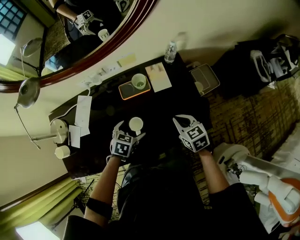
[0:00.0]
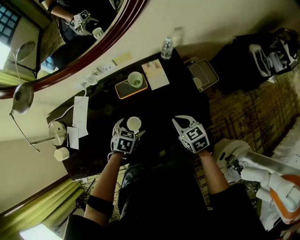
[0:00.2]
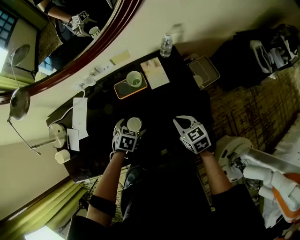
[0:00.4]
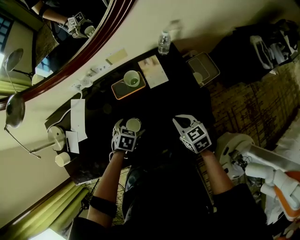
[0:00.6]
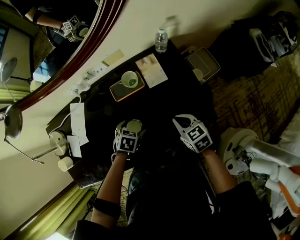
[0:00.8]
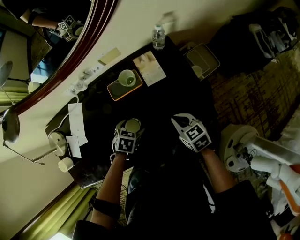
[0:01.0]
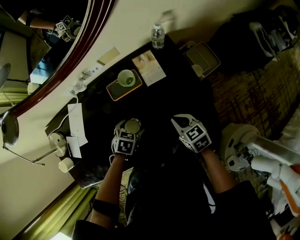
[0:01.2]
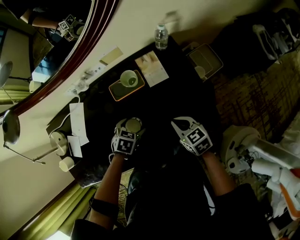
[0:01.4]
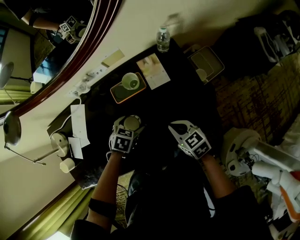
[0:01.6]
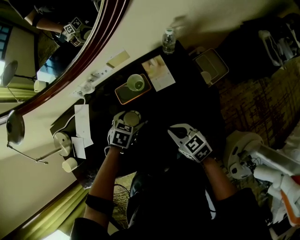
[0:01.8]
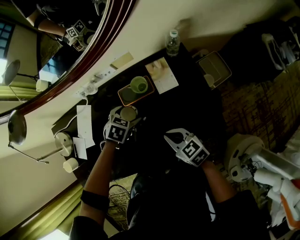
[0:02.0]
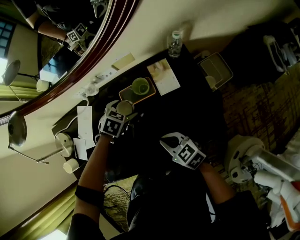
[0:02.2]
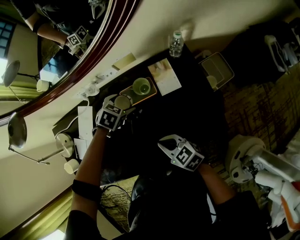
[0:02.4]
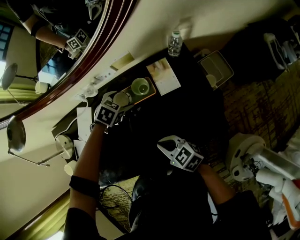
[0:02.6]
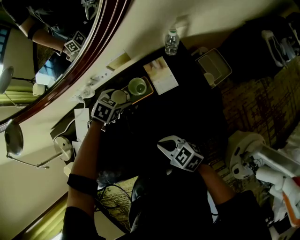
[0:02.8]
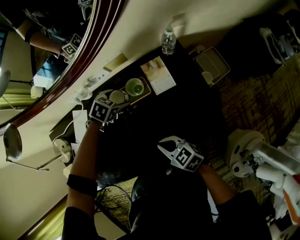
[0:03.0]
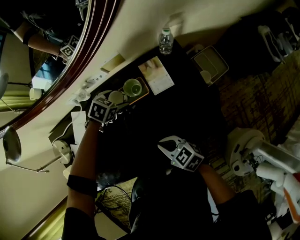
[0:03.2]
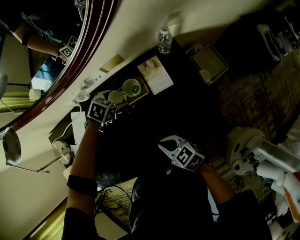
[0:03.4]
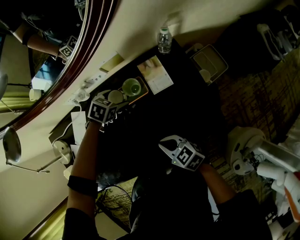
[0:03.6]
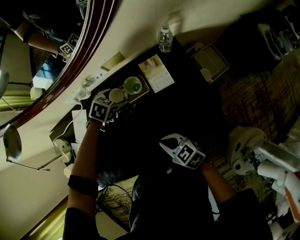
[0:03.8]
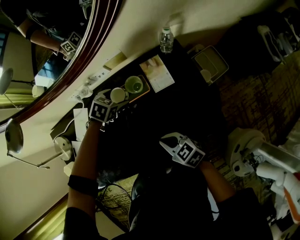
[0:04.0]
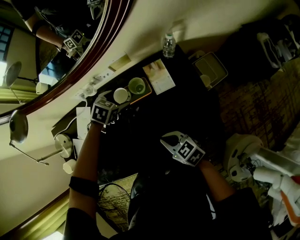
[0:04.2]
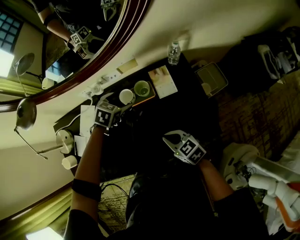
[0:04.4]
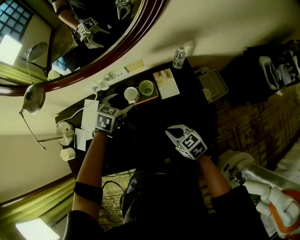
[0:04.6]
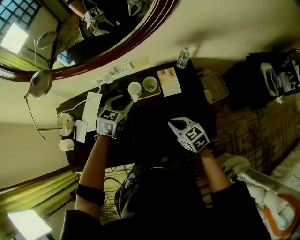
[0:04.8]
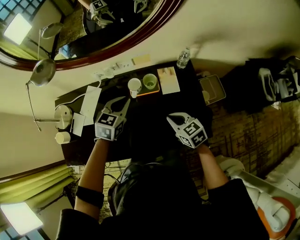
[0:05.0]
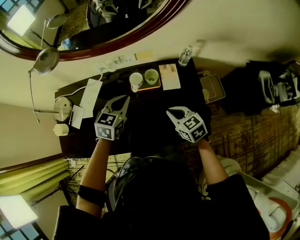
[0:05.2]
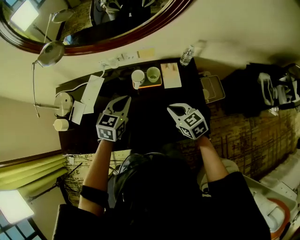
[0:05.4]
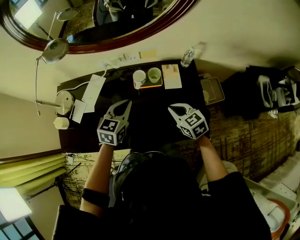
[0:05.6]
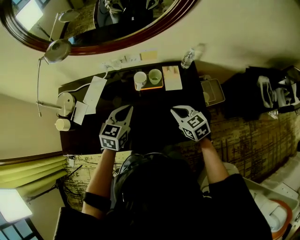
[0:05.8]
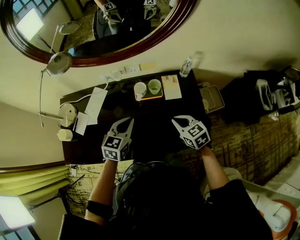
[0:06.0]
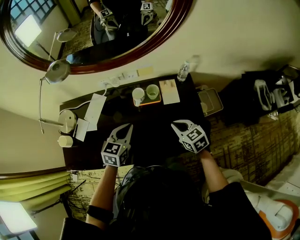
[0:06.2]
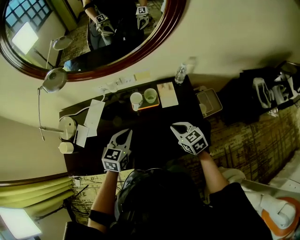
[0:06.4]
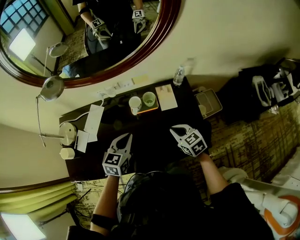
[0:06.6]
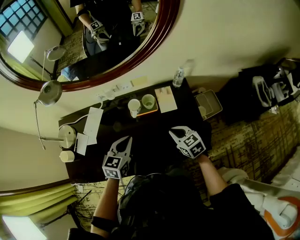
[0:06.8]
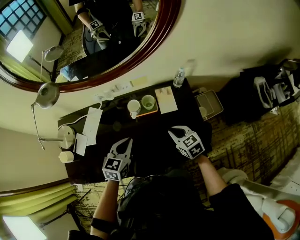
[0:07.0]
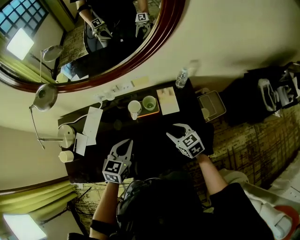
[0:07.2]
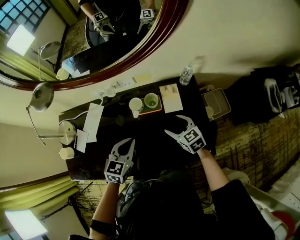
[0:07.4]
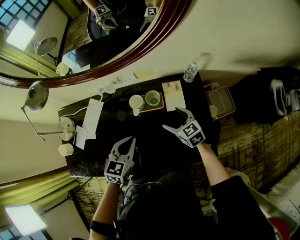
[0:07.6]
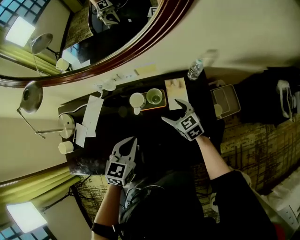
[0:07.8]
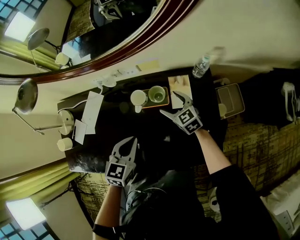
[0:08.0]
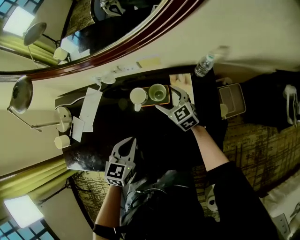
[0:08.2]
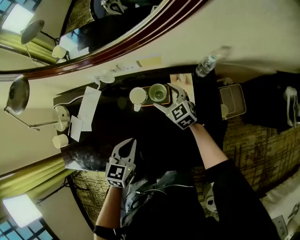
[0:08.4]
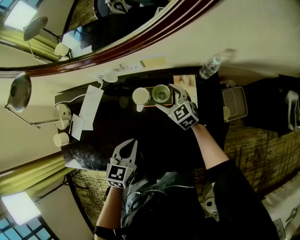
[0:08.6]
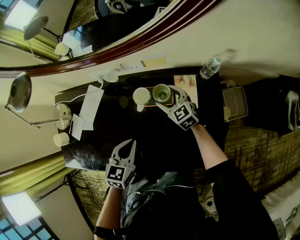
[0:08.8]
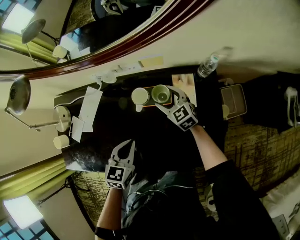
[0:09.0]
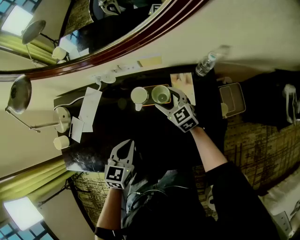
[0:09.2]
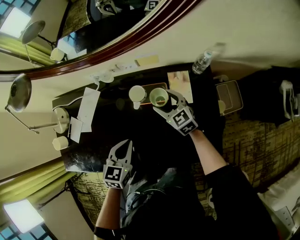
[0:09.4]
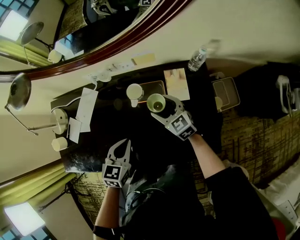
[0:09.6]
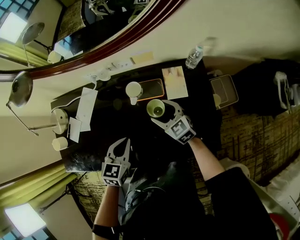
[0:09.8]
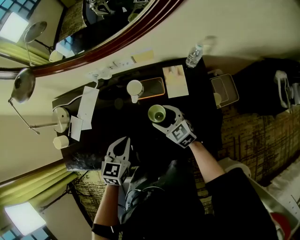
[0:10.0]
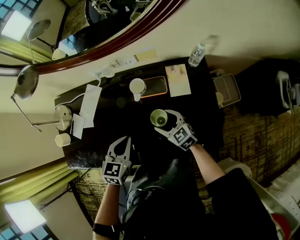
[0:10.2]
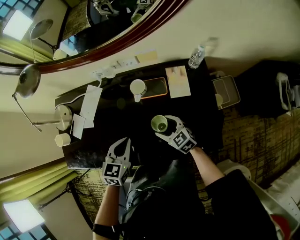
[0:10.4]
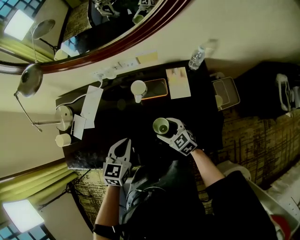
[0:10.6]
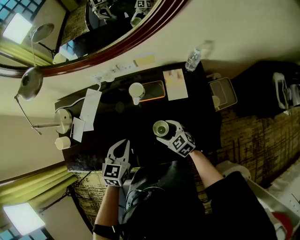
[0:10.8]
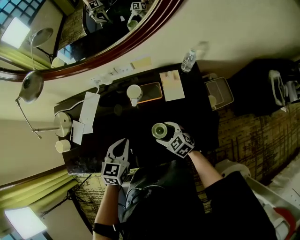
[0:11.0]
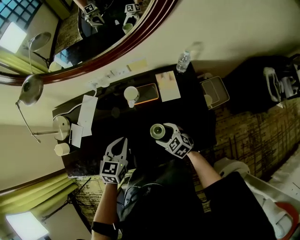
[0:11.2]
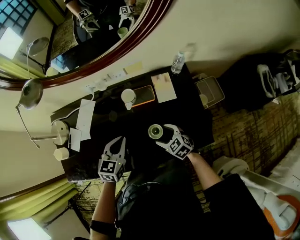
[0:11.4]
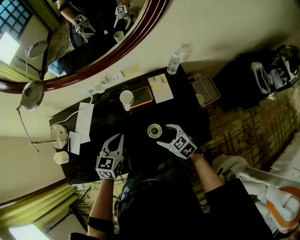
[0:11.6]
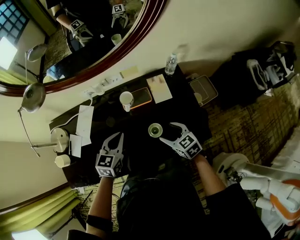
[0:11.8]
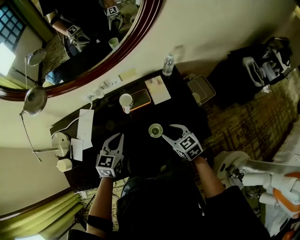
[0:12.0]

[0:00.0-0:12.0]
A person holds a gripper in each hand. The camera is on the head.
0:00.0 to 0:01.6: The right gripper goes some 5 cm downward; the left gripper travels forward by some 5 cm.
0:01.6 to 0:03.0: The right gripper moves some 10 cm; the left gripper ends up some 15 cm from where it was.
0:03.0 to 0:04.4: The right gripper moves about 5 cm, while the left gripper is displaced upward by about 10 cm.
0:04.4 to 0:06.0: The left gripper goes some 20 cm backward and upward, rotates some 40 degrees, and closes up, while the right gripper heads upward, covering about 5 cm.
0:06.0 to 0:07.6: The left gripper ends up some 5 cm from where it was; the right gripper shifts approximately 15 cm forward and downward, and opens.
0:07.6 to 0:09.0: The right gripper moves forward and to the left, roughly 10 cm. The left gripper is displaced downward by approximately 5 cm.
0:09.0 to 0:10.4: The right gripper is displaced backward by about 20 cm, while the left gripper changes place by about 5 cm.
0:10.4 to 0:12.0: The right gripper heads upward, to the right and backward, covering approximately 10 cm, and changes its angle by roughly 30 degrees. The left gripper changes place by approximately 5 cm.

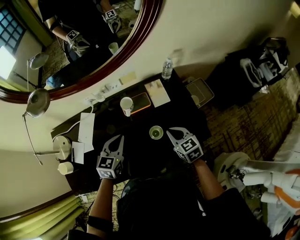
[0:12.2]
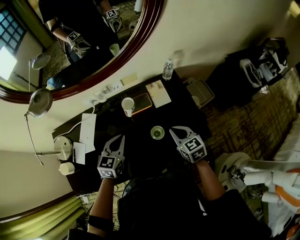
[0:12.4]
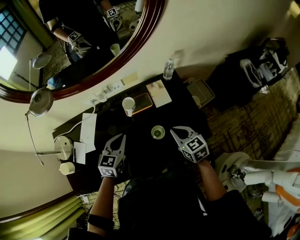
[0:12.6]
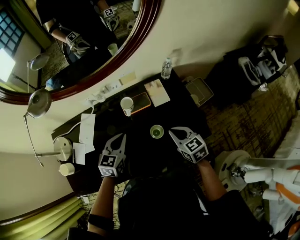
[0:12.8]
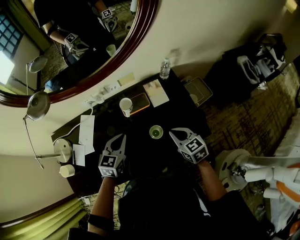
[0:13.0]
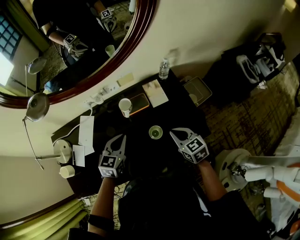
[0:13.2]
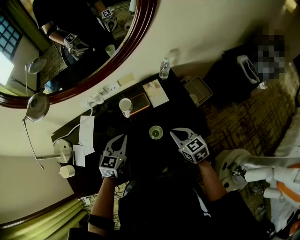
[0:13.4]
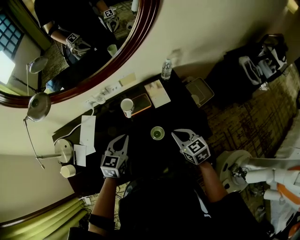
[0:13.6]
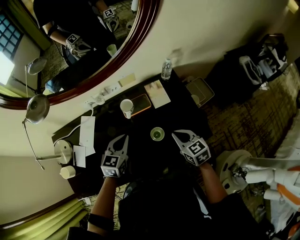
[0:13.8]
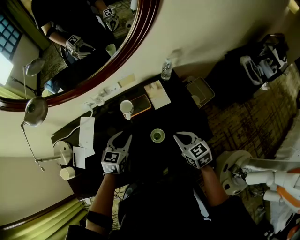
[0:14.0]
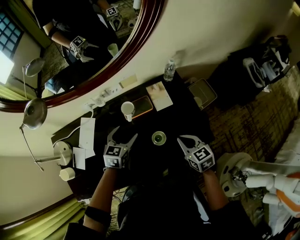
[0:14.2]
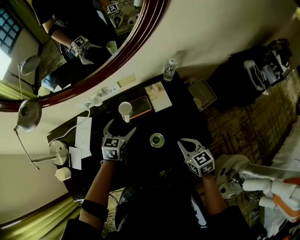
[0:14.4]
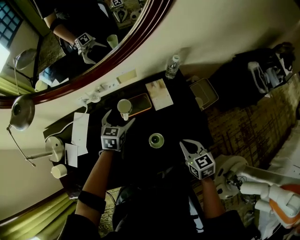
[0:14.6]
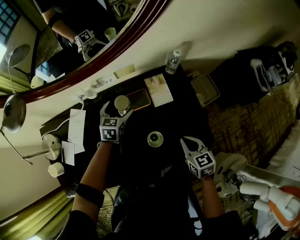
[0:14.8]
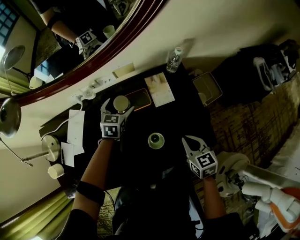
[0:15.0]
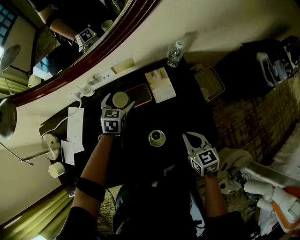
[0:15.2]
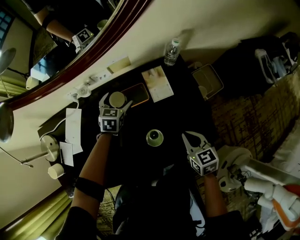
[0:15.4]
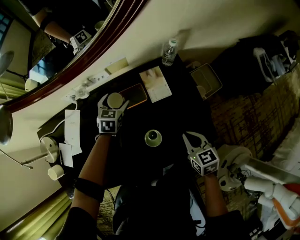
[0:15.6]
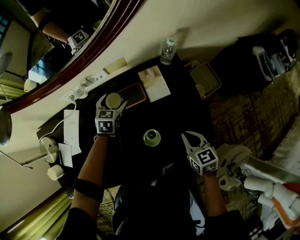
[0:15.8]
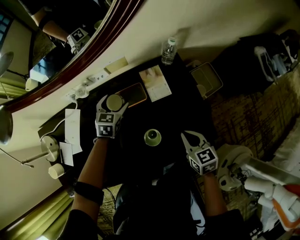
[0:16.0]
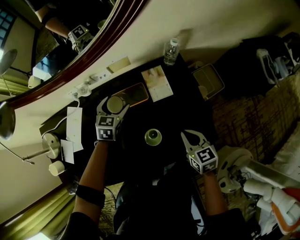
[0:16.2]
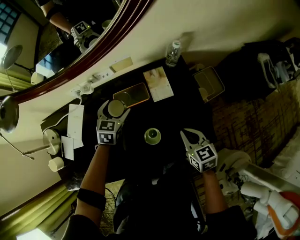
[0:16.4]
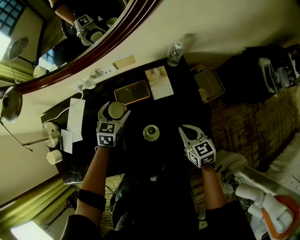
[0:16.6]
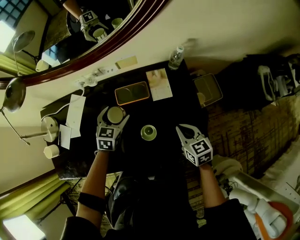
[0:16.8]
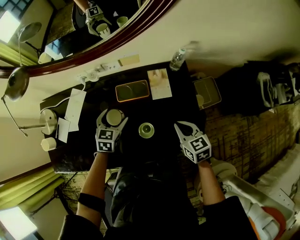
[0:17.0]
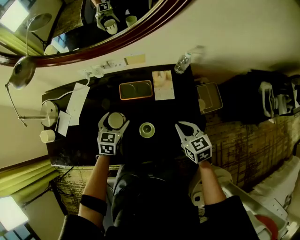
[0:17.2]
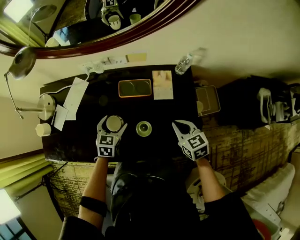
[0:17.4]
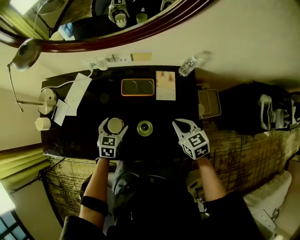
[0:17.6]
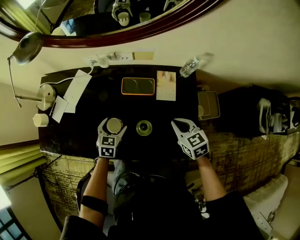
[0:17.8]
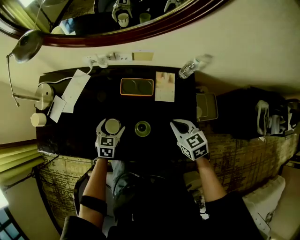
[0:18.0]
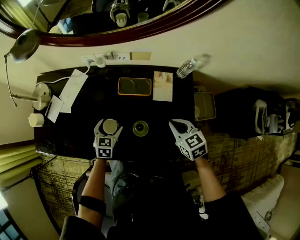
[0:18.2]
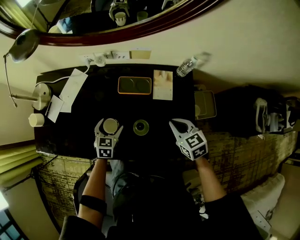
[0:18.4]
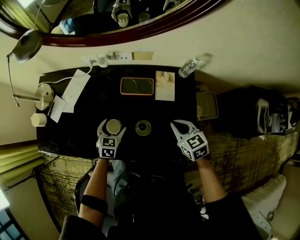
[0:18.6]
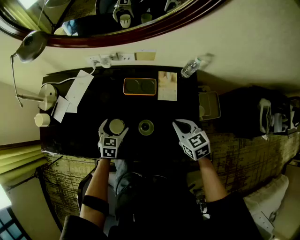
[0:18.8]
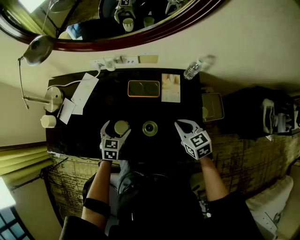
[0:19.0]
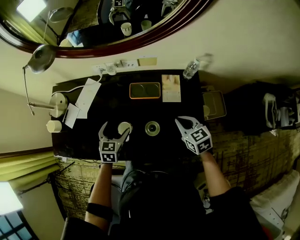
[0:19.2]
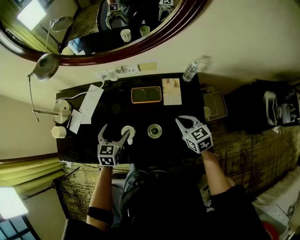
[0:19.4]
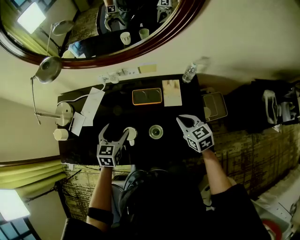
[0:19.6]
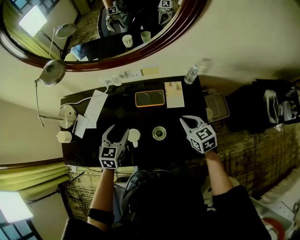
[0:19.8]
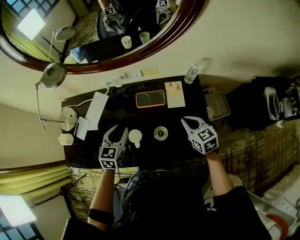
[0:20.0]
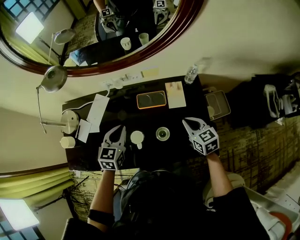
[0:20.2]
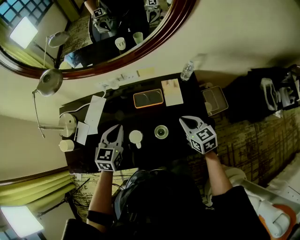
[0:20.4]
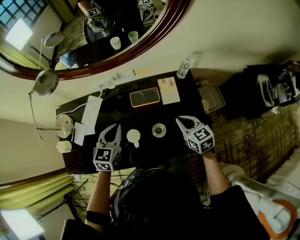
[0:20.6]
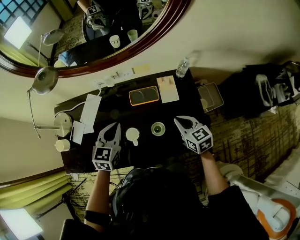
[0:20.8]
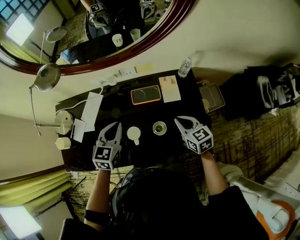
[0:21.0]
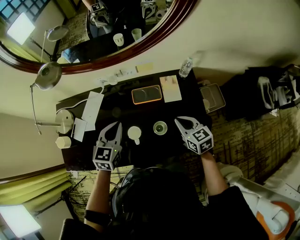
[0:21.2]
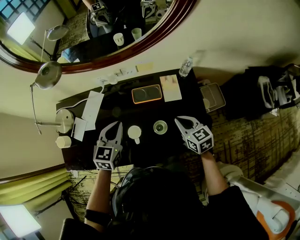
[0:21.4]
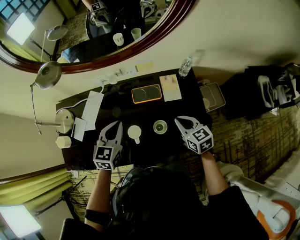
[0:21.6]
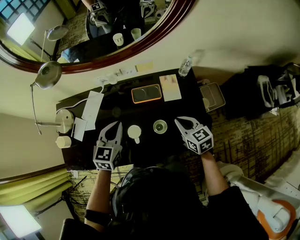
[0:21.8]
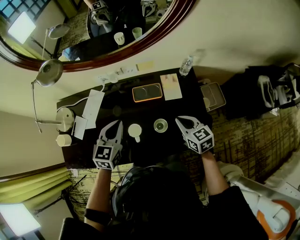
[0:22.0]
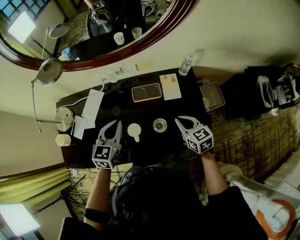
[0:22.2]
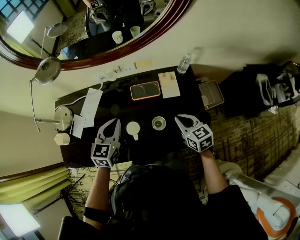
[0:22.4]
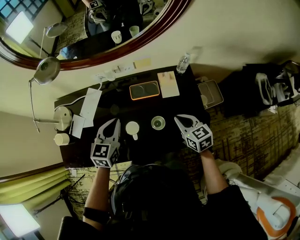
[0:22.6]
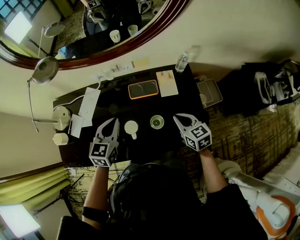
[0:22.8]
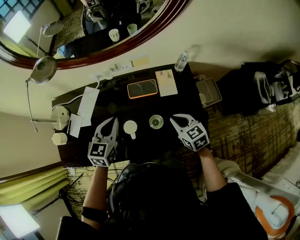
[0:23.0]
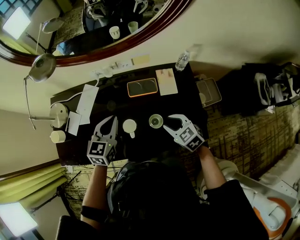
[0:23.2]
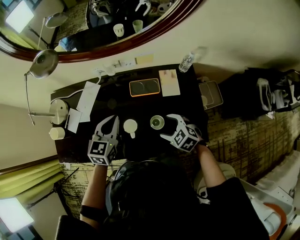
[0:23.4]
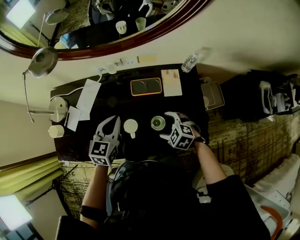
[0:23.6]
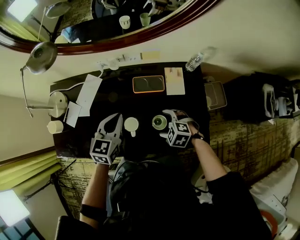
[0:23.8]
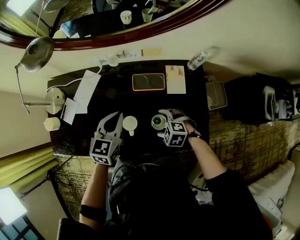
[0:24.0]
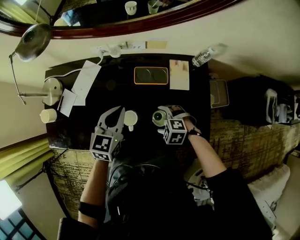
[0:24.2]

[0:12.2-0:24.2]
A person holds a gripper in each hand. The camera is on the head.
0:12.2 to 0:13.8: The grippers stay close to where they were, moving slightly.
0:13.8 to 0:15.2: The left gripper moves forward and downward, about 25 cm, and opens its fingers. The right gripper travels downward and to the right by some 10 cm.
0:15.2 to 0:16.6: The left gripper is displaced backward by about 10 cm.
0:16.6 to 0:18.2: The left gripper is displaced backward, downward and to the left by roughly 15 cm, and turns by about 20 degrees, while the right gripper shifts by about 5 cm, and rotates some 30 degrees.
0:18.2 to 0:19.8: The left gripper goes roughly 15 cm upward. The right gripper goes roughly 5 cm upward.
0:19.8 to 0:21.2: The left gripper travels upward by roughly 5 cm, and closes.
0:21.2 to 0:22.6: The grippers stay close to where they were, moving slightly.
0:22.6 to 0:24.2: The left gripper ends up some 5 cm from where it was. Meanwhile the right gripper is displaced downward and to the left by some 20 cm, points its fingers roughly 30 degrees further downward, and opens.
